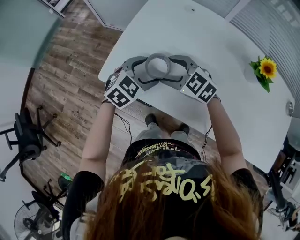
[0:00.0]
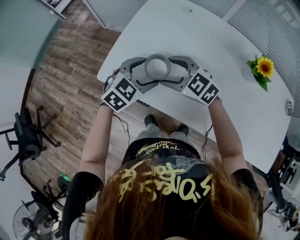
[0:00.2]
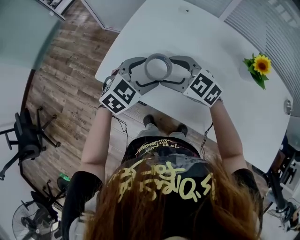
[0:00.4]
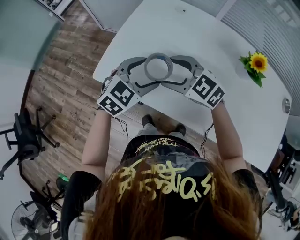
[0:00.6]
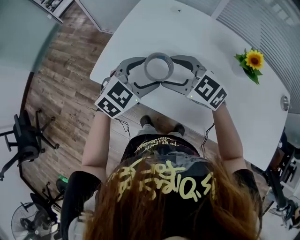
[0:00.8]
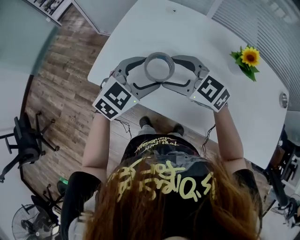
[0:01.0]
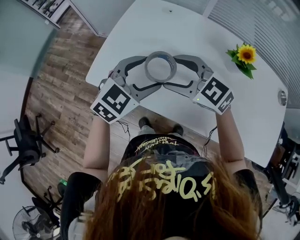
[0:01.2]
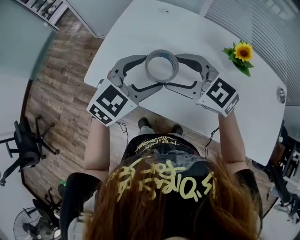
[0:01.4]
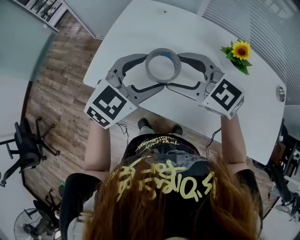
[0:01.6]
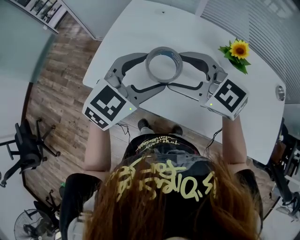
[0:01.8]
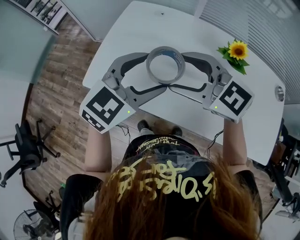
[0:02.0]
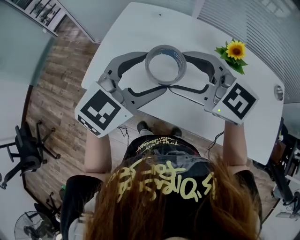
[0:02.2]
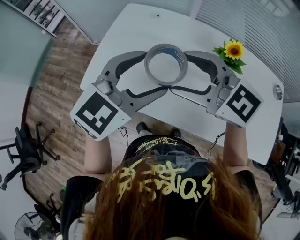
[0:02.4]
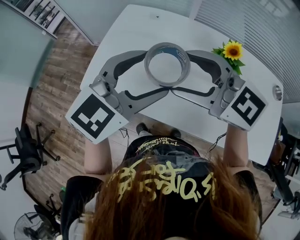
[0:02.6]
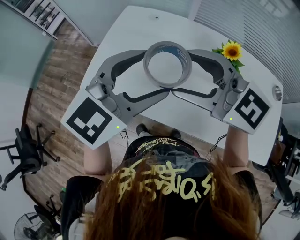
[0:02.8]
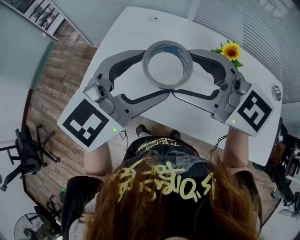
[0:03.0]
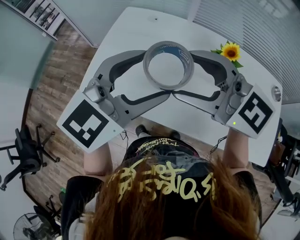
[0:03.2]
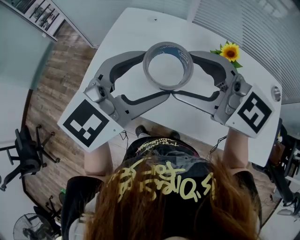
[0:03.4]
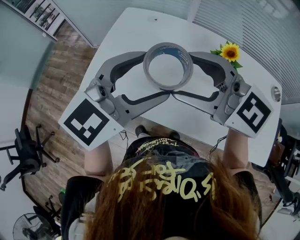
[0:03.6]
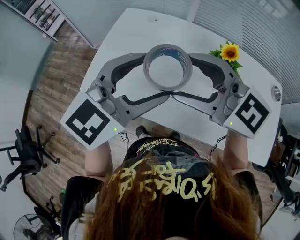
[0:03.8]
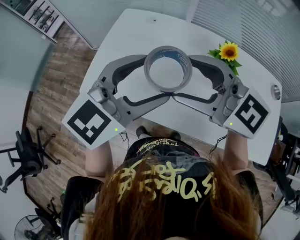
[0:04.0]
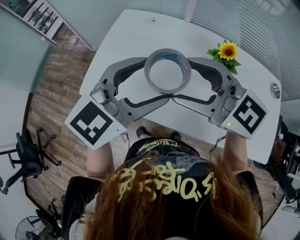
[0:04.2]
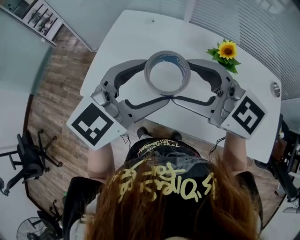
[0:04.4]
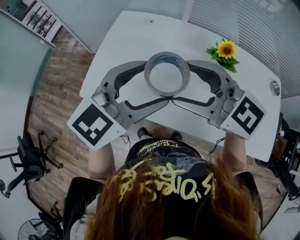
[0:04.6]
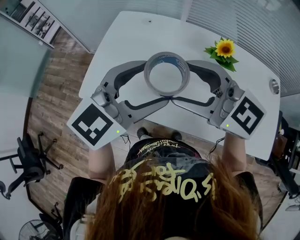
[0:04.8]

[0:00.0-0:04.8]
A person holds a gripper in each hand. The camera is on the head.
0:00.0 to 0:01.6: The two grippers go about 20 cm upward, to the right and backward.
0:01.6 to 0:03.2: The left gripper shifts some 10 cm upward. The right gripper is displaced upward and to the right by about 10 cm.
0:03.2 to 0:04.8: There are only small adjustments of the grippers.

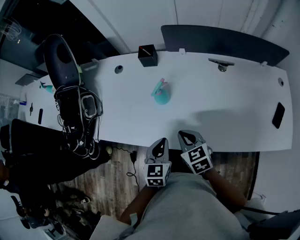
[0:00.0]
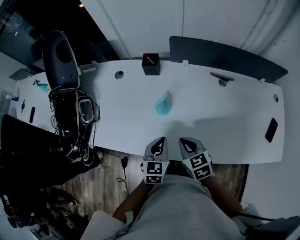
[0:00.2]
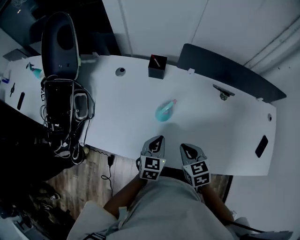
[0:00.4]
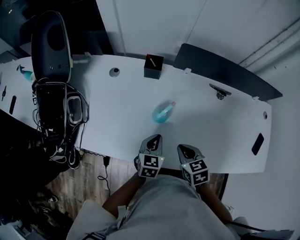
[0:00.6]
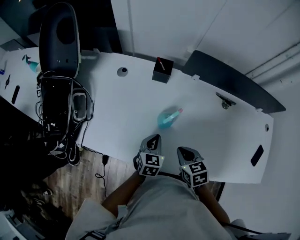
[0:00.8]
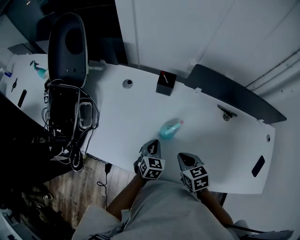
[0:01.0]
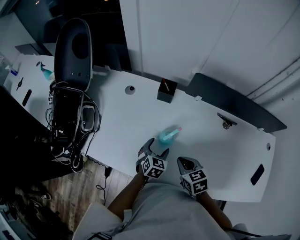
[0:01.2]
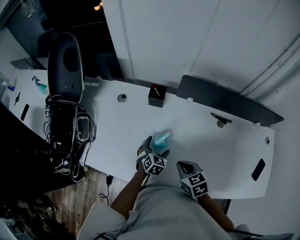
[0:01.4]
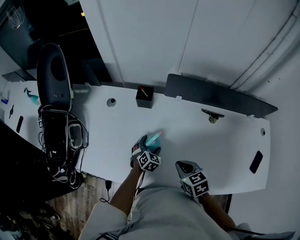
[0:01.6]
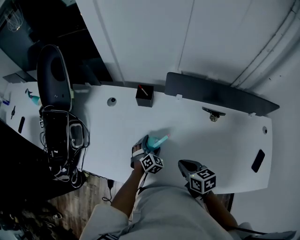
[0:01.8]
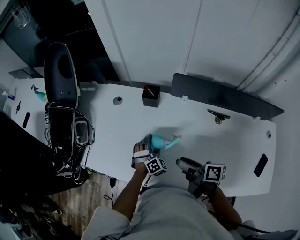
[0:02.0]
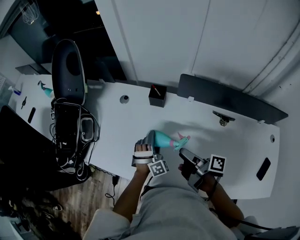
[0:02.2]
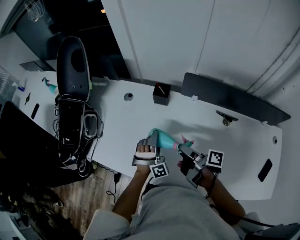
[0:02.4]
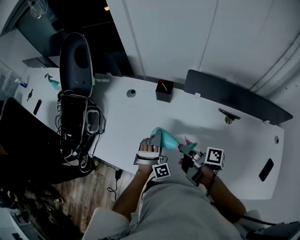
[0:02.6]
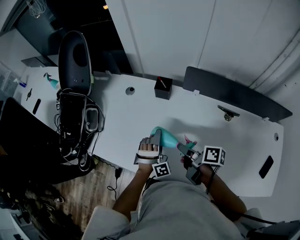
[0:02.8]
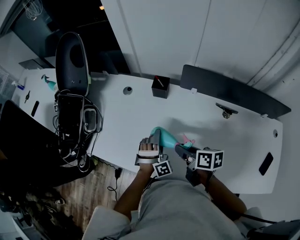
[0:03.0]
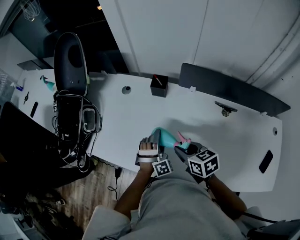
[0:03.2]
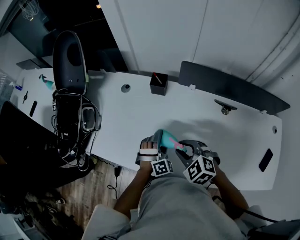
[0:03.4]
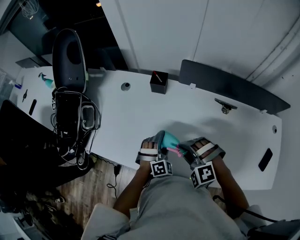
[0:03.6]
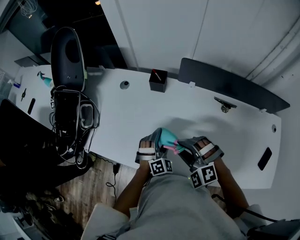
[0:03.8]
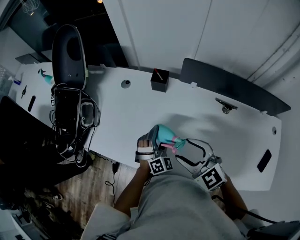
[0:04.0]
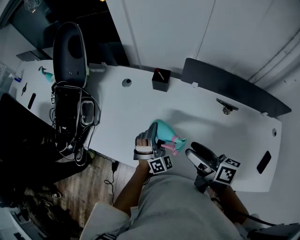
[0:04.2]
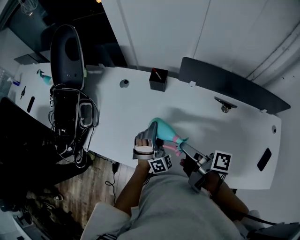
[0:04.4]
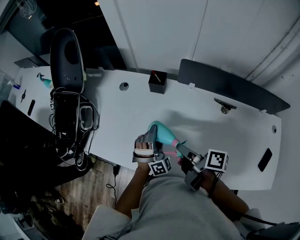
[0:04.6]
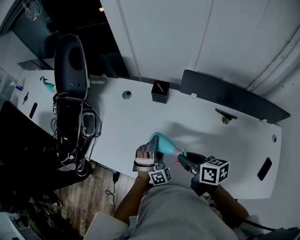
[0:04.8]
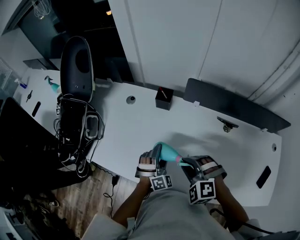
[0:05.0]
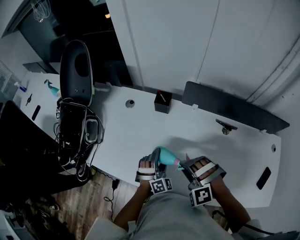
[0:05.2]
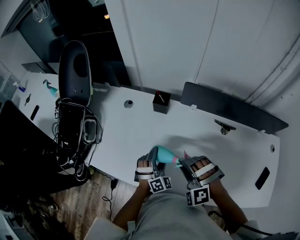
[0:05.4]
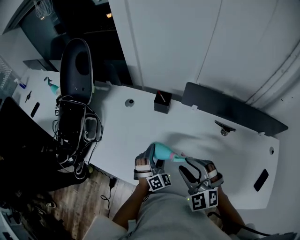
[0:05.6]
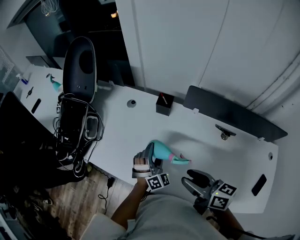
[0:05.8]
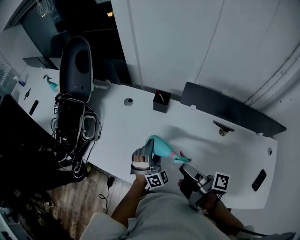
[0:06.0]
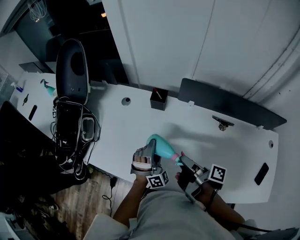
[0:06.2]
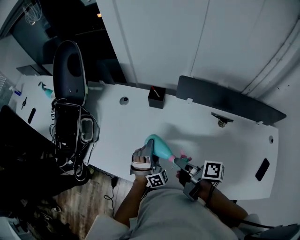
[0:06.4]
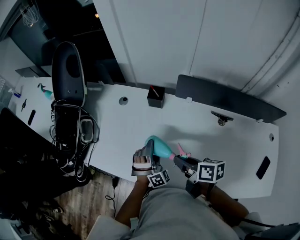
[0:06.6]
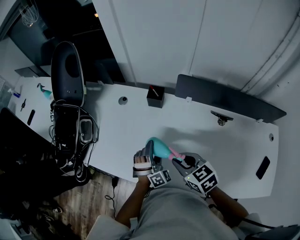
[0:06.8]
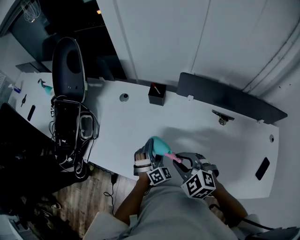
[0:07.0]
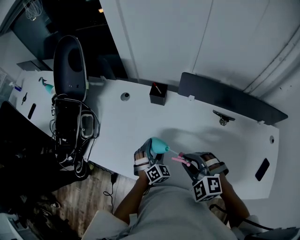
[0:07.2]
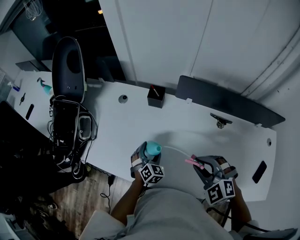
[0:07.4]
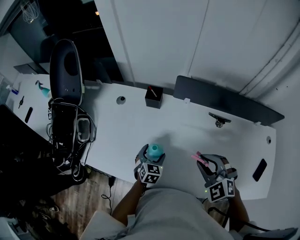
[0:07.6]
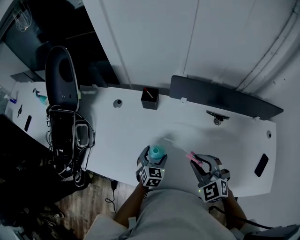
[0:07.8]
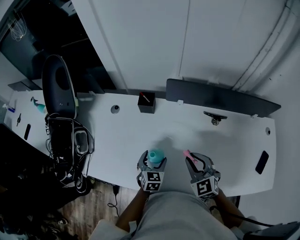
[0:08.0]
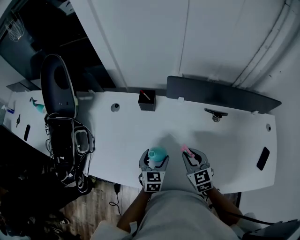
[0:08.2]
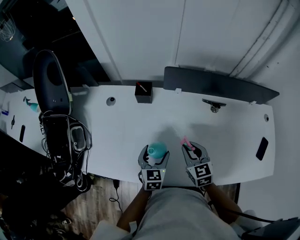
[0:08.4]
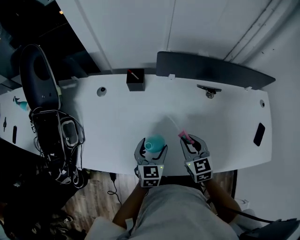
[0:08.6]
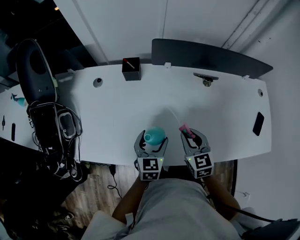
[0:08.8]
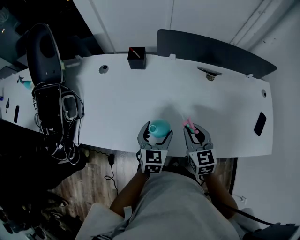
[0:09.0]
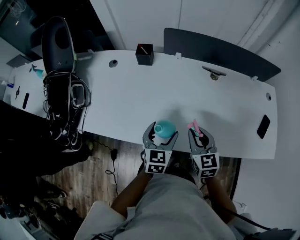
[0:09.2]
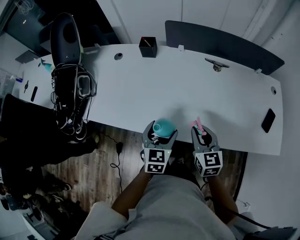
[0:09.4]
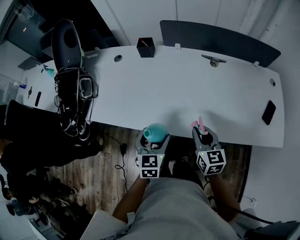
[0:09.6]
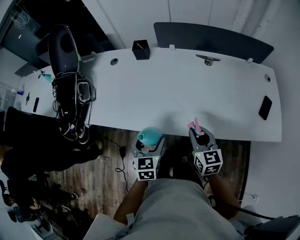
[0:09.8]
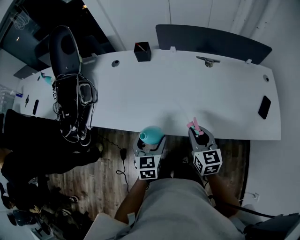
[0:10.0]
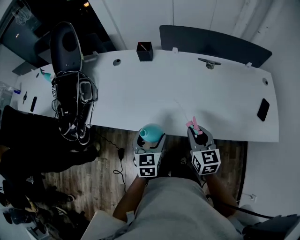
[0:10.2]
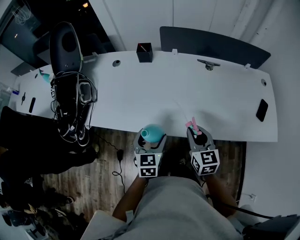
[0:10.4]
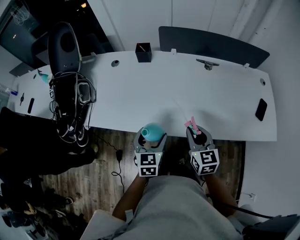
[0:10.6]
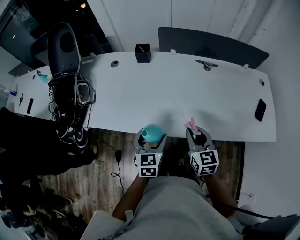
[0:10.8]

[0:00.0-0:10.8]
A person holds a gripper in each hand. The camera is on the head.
0:00.0 to 0:01.6: The left gripper heads forward and downward, covering some 25 cm, swivels roughly 30 degrees, and opens its fingers. The right gripper goes about 10 cm forward.
0:01.6 to 0:03.0: The right gripper moves roughly 5 cm, turns by some 40 degrees, and opens up. Meanwhile the left gripper is displaced upward by approximately 10 cm, and rolls clockwise, seen from behind, by roughly 40 degrees.
0:03.0 to 0:04.6: The right gripper turns by about 30 degrees, and opens, then closes again.
0:04.6 to 0:06.2: The right gripper reaches roughly 10 cm upward, then returns, and turns by about 20 degrees.
0:06.2 to 0:07.8: The right gripper shifts by approximately 5 cm, and twists about 130 degrees counterclockwise, seen from behind, while the left gripper heads downward, covering approximately 10 cm, and twists some 50 degrees counterclockwise, seen from behind.
0:07.8 to 0:09.2: The right gripper moves backward and downward, some 10 cm, and rolls clockwise, seen from behind, by about 40 degrees. Meanwhile the left gripper travels backward and upward by about 15 cm.
0:09.2 to 0:10.8: The left gripper shifts approximately 10 cm backward and to the left, while the right gripper is displaced backward by some 10 cm.

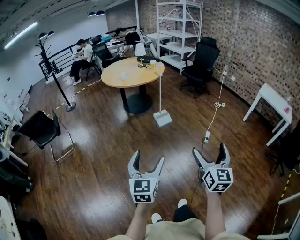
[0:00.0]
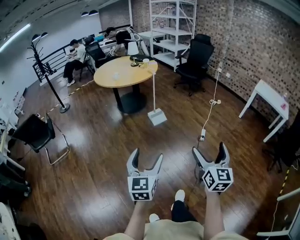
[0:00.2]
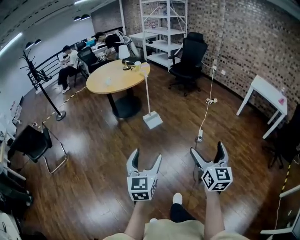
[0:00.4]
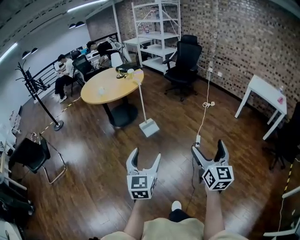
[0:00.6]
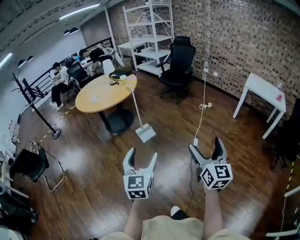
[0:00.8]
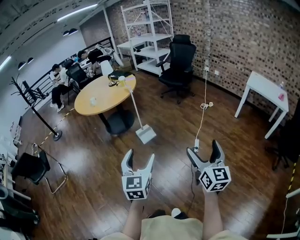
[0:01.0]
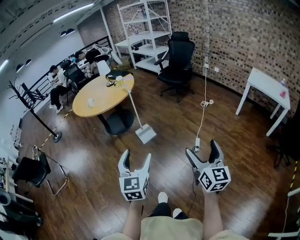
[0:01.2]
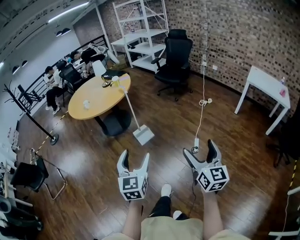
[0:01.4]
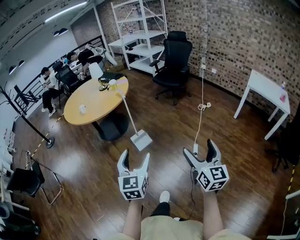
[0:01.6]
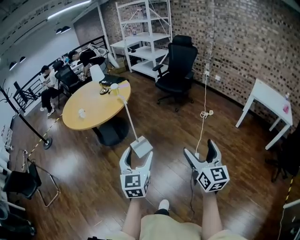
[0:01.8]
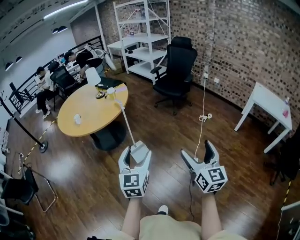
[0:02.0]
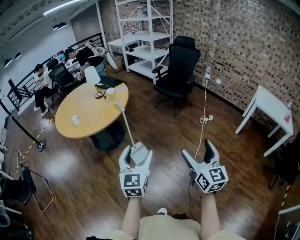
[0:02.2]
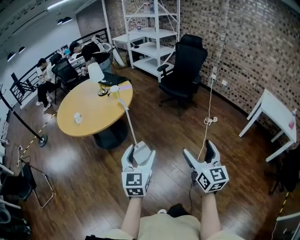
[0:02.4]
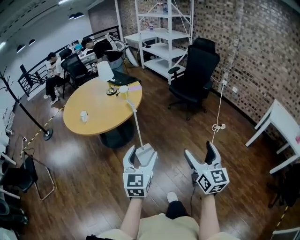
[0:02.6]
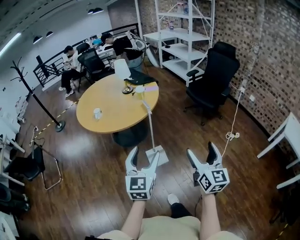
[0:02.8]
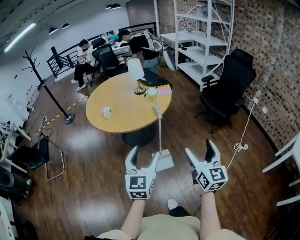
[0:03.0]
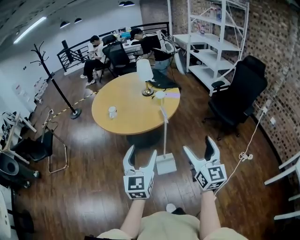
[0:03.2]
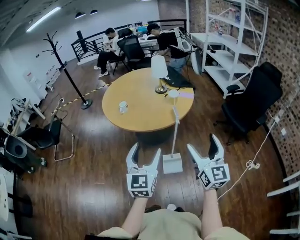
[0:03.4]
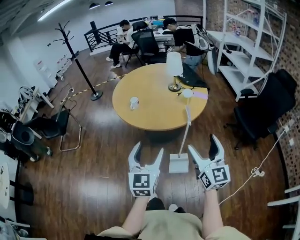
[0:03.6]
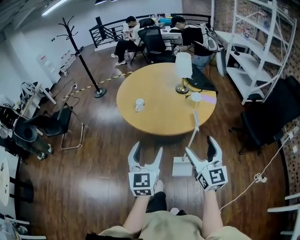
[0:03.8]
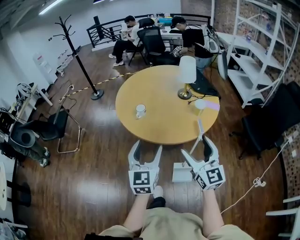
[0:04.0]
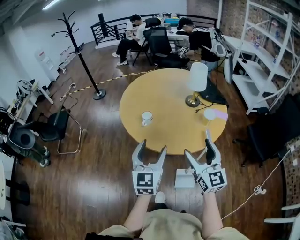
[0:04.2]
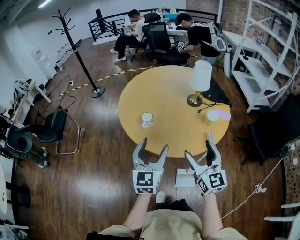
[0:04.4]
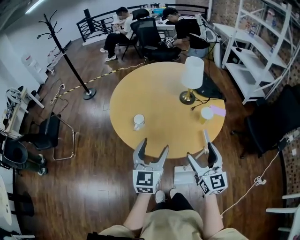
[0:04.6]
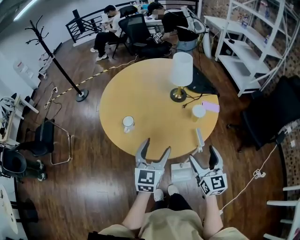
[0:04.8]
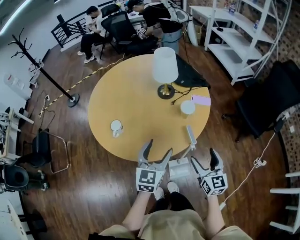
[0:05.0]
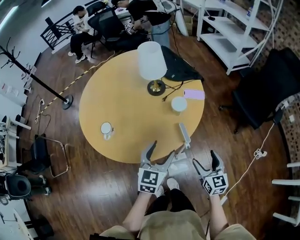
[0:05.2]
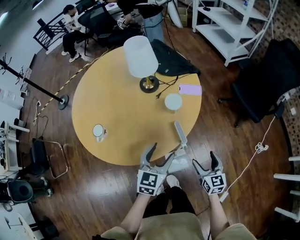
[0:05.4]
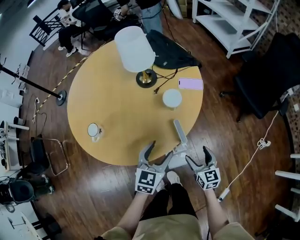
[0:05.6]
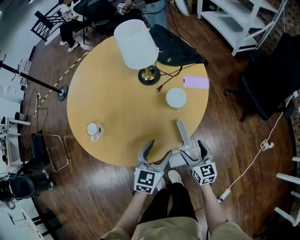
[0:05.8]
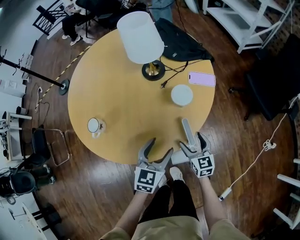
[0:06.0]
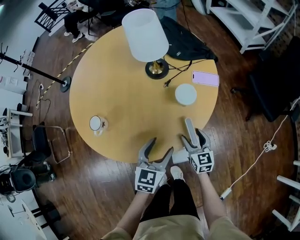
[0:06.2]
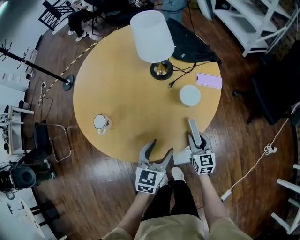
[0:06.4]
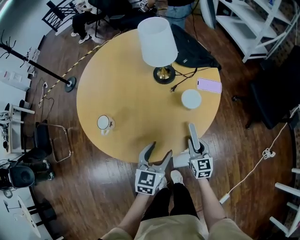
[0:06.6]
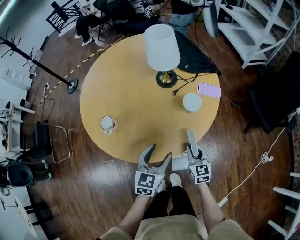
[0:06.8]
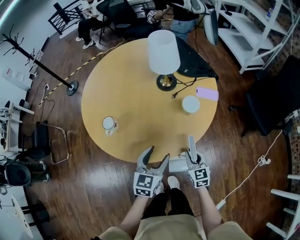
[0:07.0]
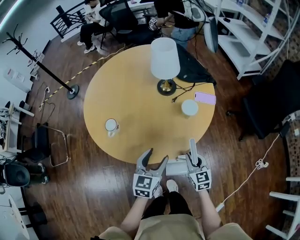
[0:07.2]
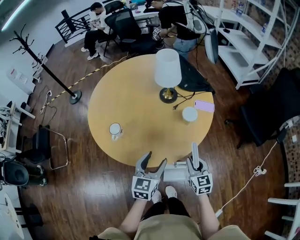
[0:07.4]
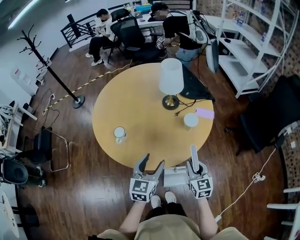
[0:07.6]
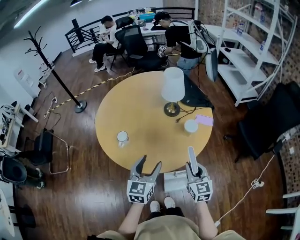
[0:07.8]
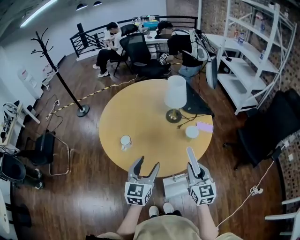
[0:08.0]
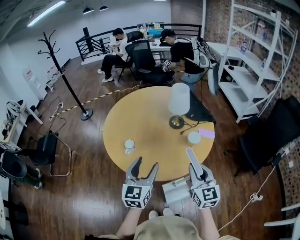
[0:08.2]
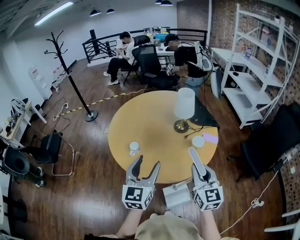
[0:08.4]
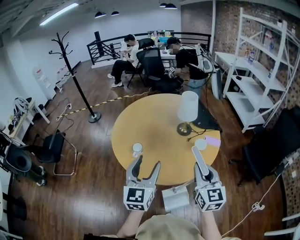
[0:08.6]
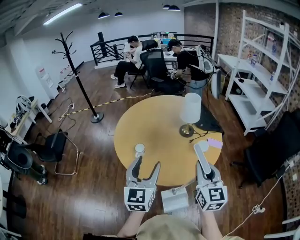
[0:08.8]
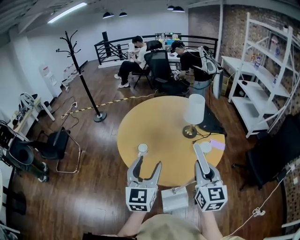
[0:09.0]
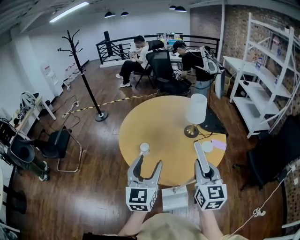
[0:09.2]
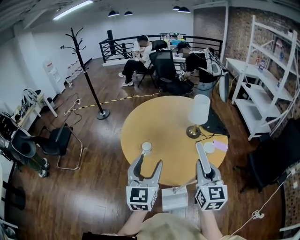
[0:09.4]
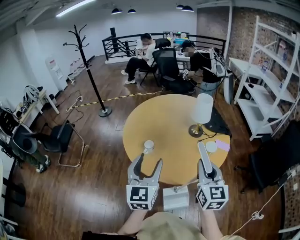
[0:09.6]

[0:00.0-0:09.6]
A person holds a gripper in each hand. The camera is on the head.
0:00.0 to 0:01.6: The right gripper heads forward and to the right, covering approximately 40 cm. The left gripper goes some 40 cm forward.
0:01.6 to 0:03.2: The left gripper shifts by approximately 40 cm, and swivels approximately 30 degrees. Meanwhile the right gripper shifts by approximately 50 cm, and changes its angle by about 30 degrees.
0:03.2 to 0:04.8: The two grippers go roughly 35 cm forward.
0:04.8 to 0:06.4: The left gripper heads downward, to the right and forward, covering some 20 cm, and swivels roughly 20 degrees. Meanwhile the right gripper heads downward and forward, covering about 30 cm, and closes.
0:06.4 to 0:08.0: The left gripper moves upward and to the left, roughly 20 cm, and rotates roughly 20 degrees. Meanwhile the right gripper travels upward by some 25 cm.
0:08.0 to 0:09.6: The two grippers go about 15 cm upward and to the left. The left gripper changes its angle by about 20 degrees.
